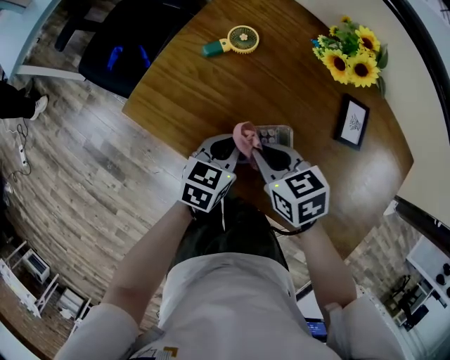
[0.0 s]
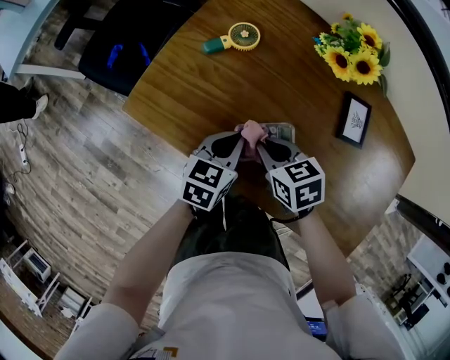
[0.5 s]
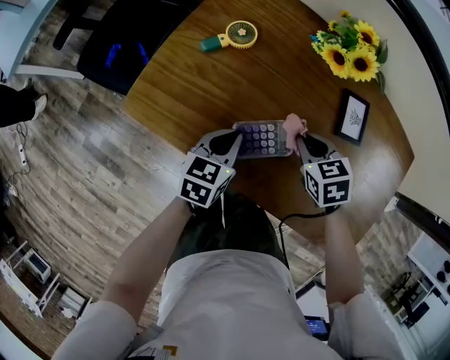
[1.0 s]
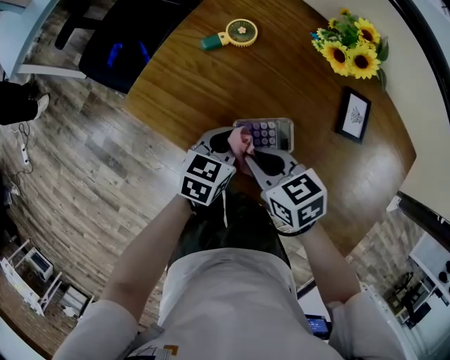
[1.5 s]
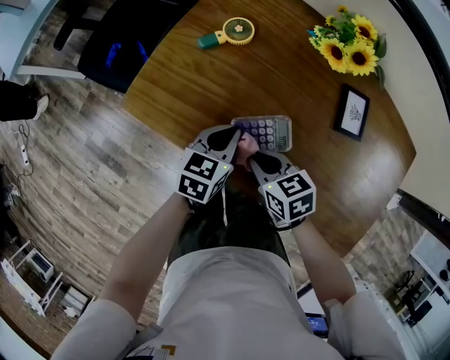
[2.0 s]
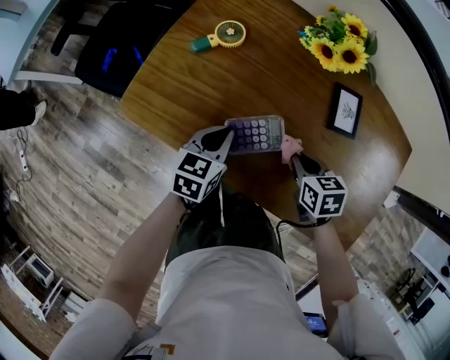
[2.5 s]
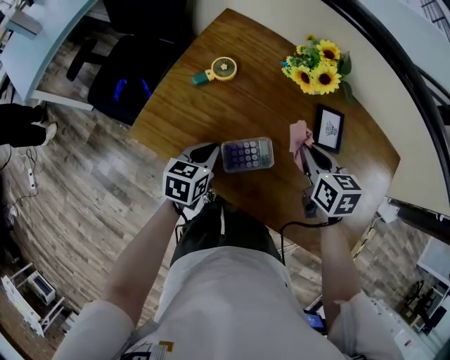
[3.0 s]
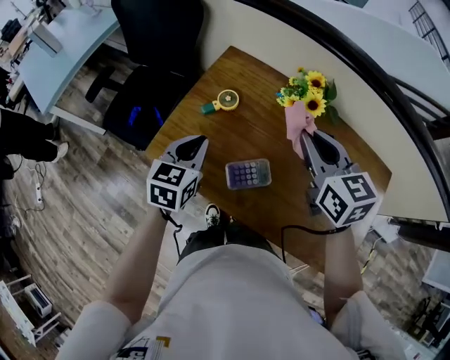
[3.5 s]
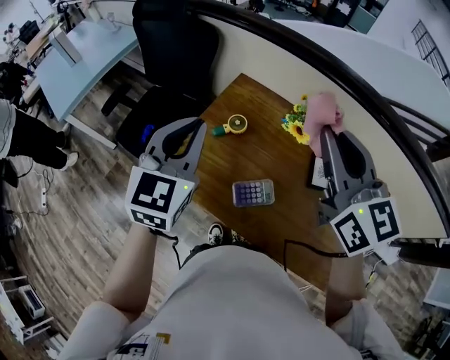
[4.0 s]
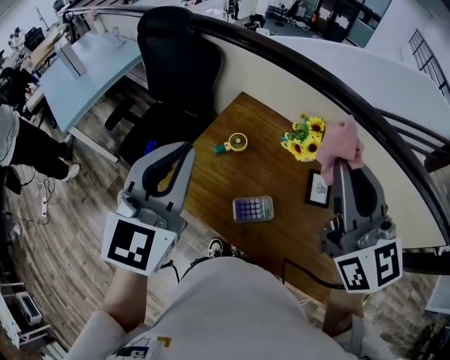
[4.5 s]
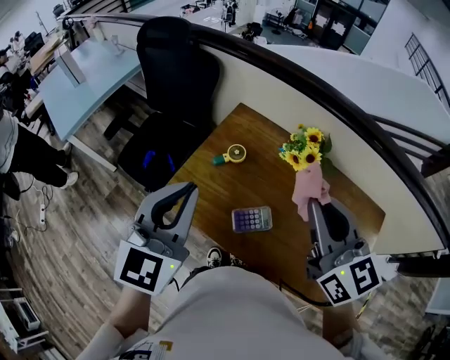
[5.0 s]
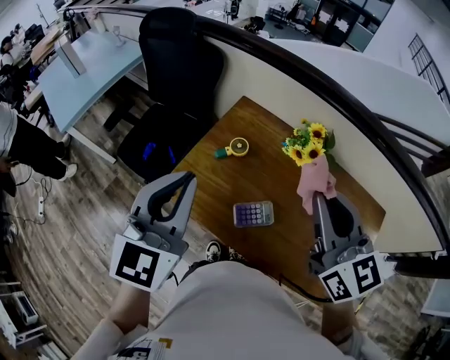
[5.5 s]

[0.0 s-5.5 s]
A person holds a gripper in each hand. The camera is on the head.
0.0 to 2.0 s: The right gripper moves some 10 cm to the right and comes back.
2.0 to 3.5 s: The right gripper is displaced upward and forward by roughly 30 cm, and turns by approximately 40 degrees. Meanwhile the left gripper goes some 20 cm upward and to the left.
3.5 to 5.5 s: The right gripper travels upward and backward by roughly 15 cm; the left gripper heads upward, covering about 25 cm, and turns by some 30 degrees.

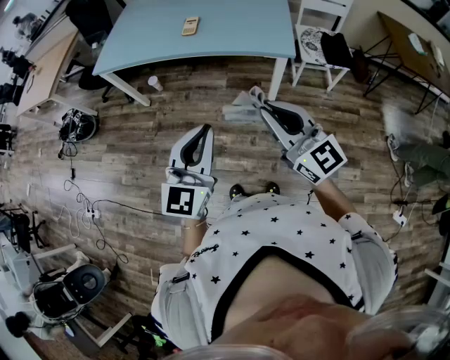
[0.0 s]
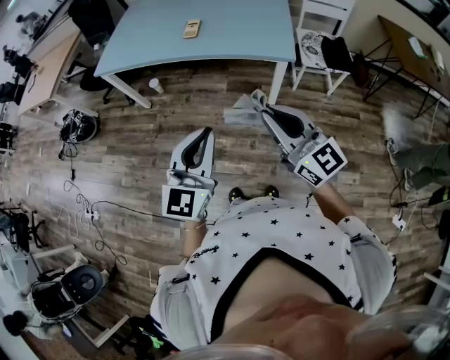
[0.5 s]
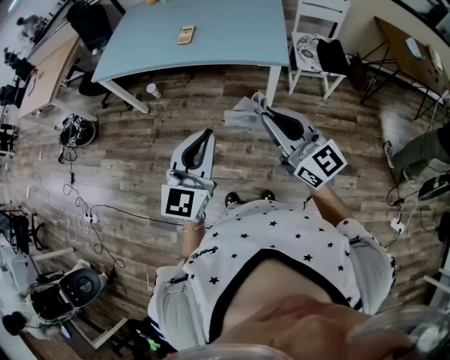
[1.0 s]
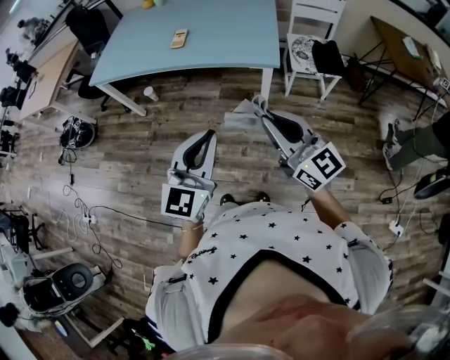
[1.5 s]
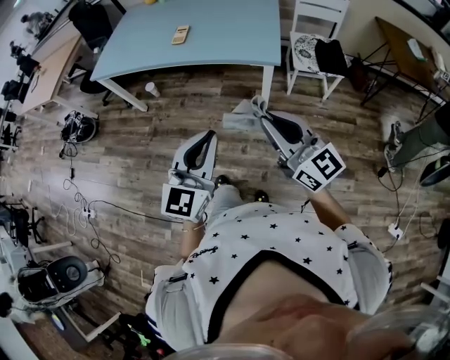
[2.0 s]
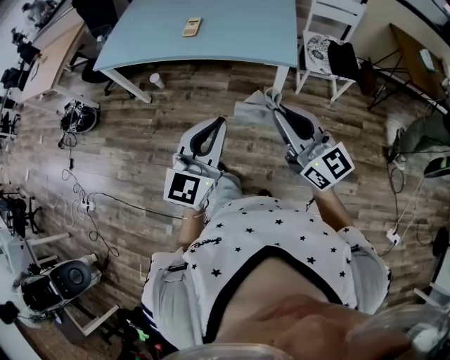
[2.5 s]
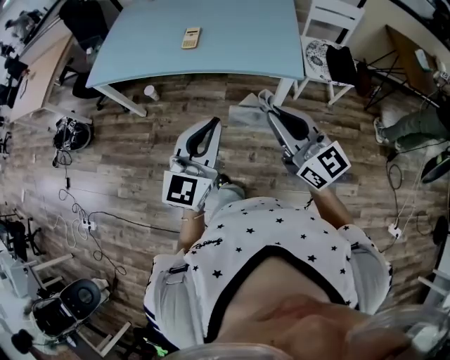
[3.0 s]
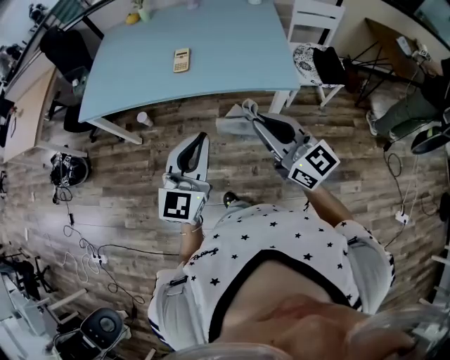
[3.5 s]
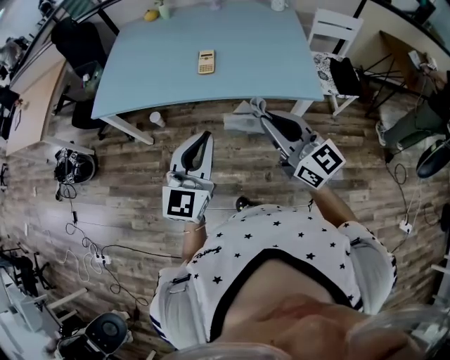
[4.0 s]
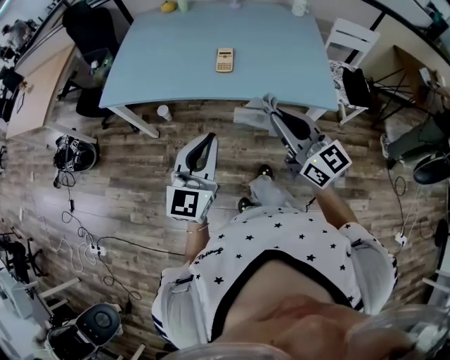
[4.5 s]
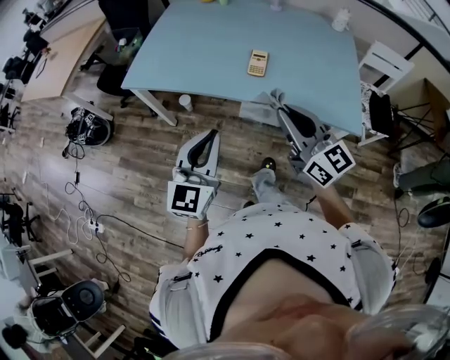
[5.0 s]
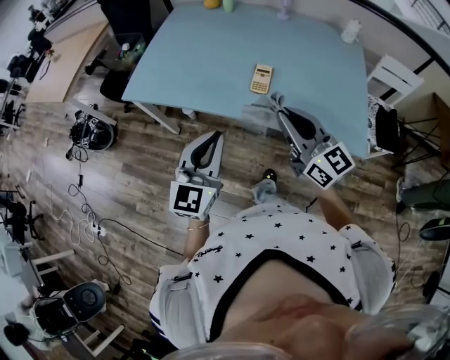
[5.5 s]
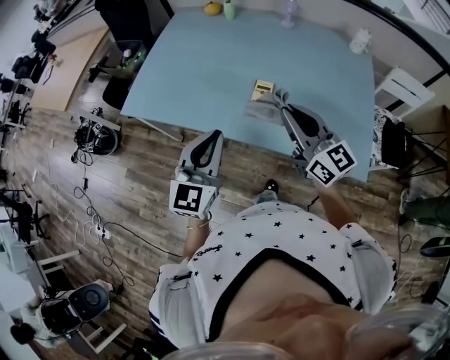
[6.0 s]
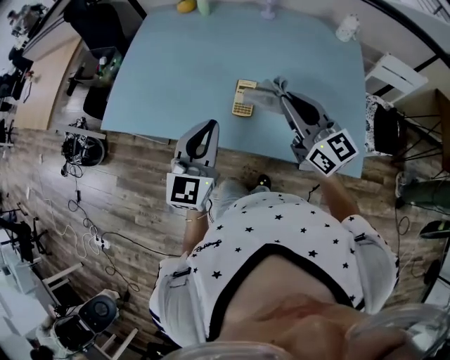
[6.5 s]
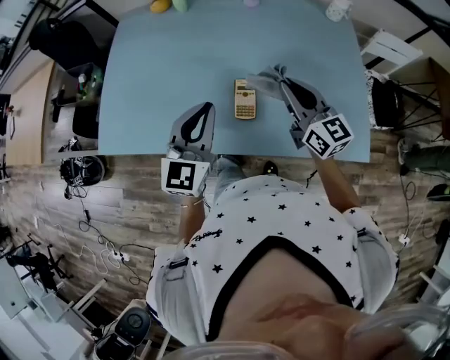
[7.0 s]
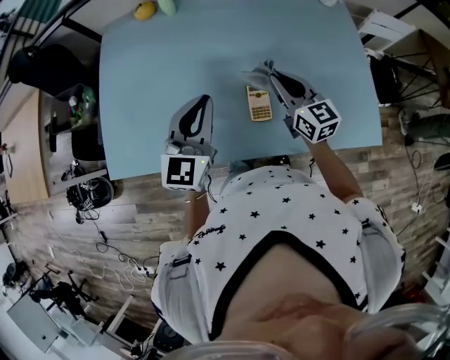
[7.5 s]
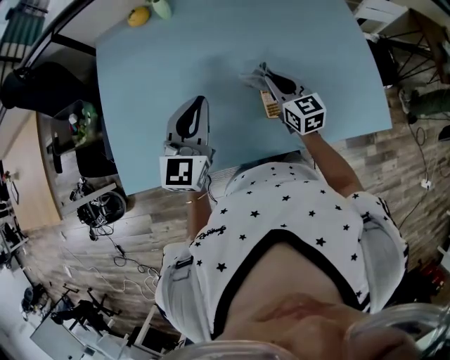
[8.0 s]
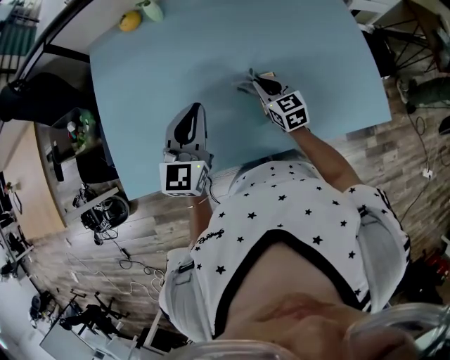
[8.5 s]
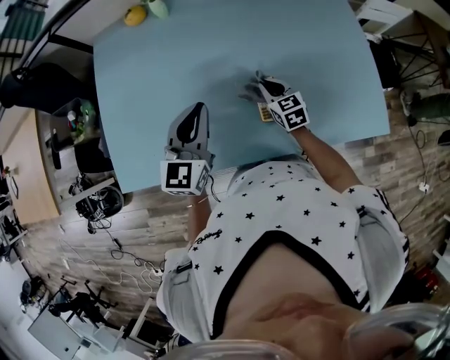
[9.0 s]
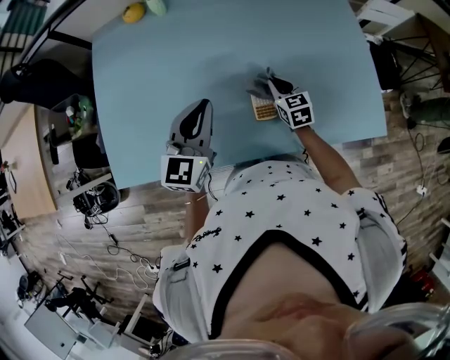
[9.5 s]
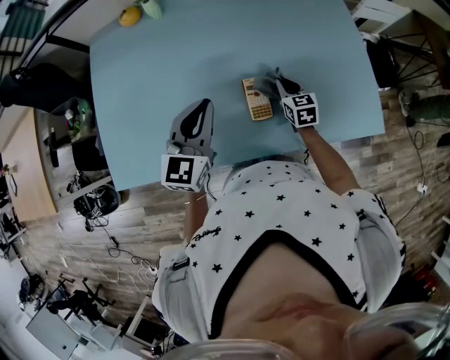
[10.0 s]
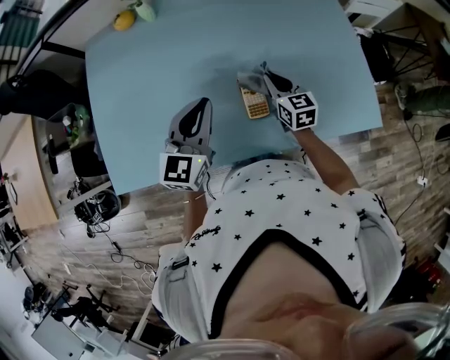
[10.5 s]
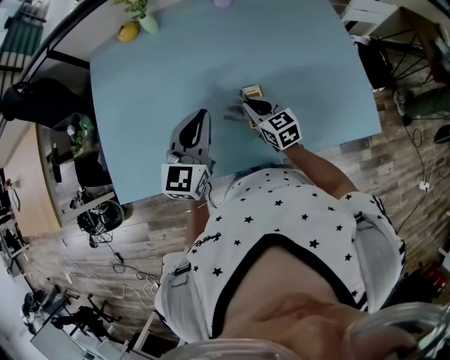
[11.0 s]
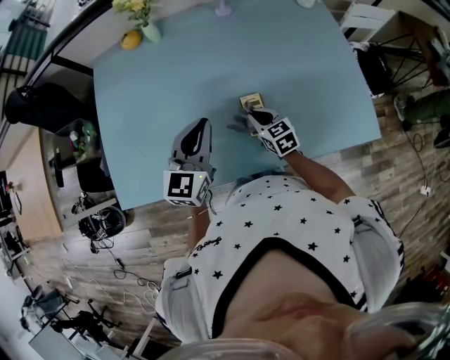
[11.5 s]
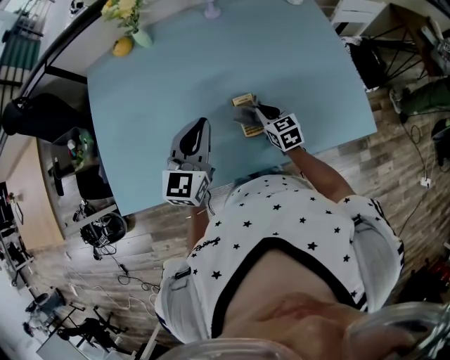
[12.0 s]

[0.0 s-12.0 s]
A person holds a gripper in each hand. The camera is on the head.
0.0 to 2.0 s: Both grippers travel together to the right, approximately 10 cm.
2.0 to 4.0 s: Both grippers travel together forward and to the left, approximately 35 cm.
4.0 to 6.0 s: The two grippers go about 25 cm forward.
6.0 to 8.0 s: The right gripper shifts by about 30 cm, and swivels about 40 degrees; the left gripper moves some 30 cm, and rotates roughly 20 degrees.
8.0 to 10.0 s: The left gripper shifts roughly 5 cm to the right. Meanwhile the right gripper shifts approximately 15 cm to the right and downward.

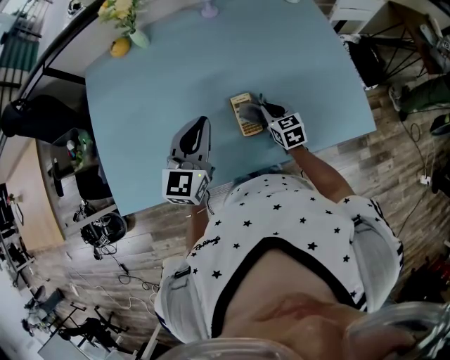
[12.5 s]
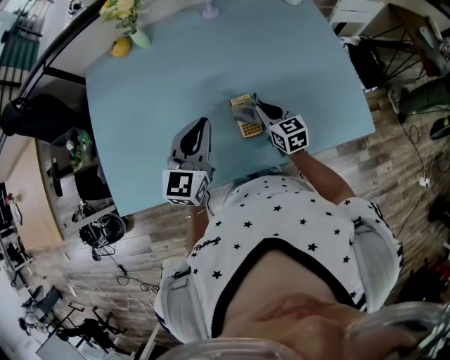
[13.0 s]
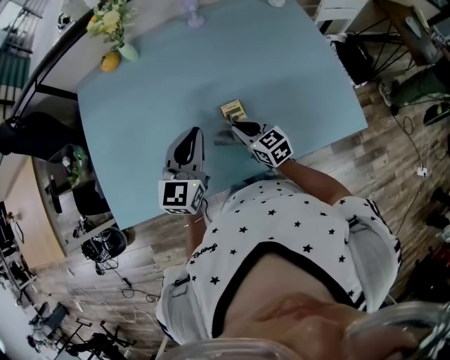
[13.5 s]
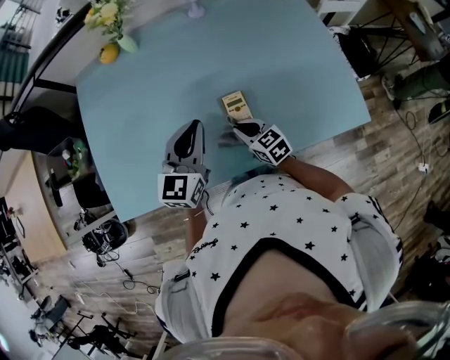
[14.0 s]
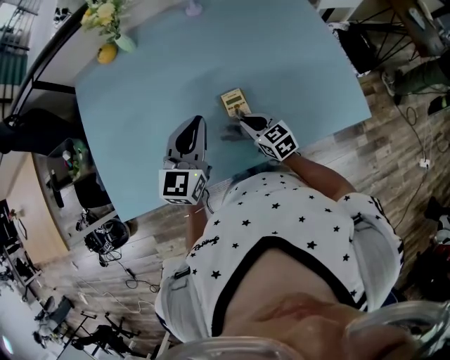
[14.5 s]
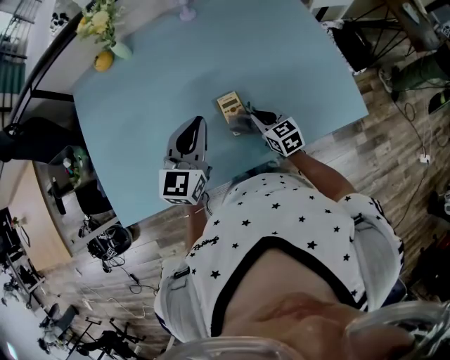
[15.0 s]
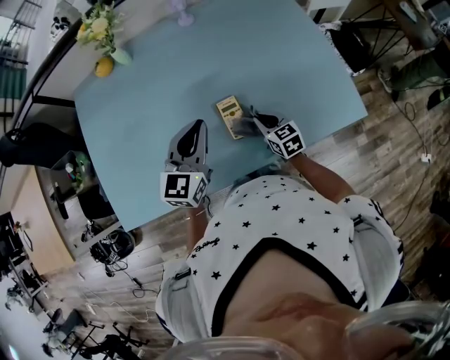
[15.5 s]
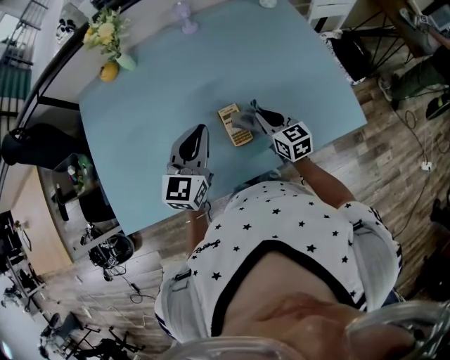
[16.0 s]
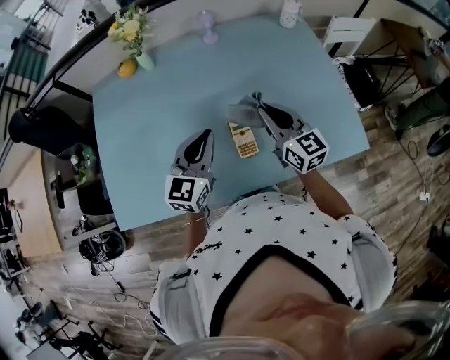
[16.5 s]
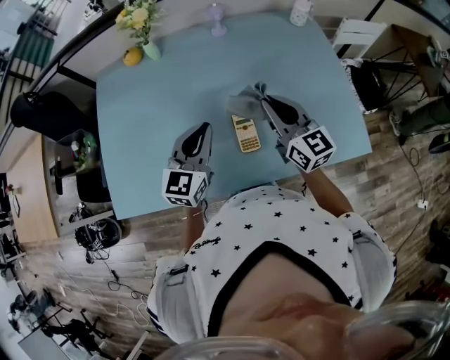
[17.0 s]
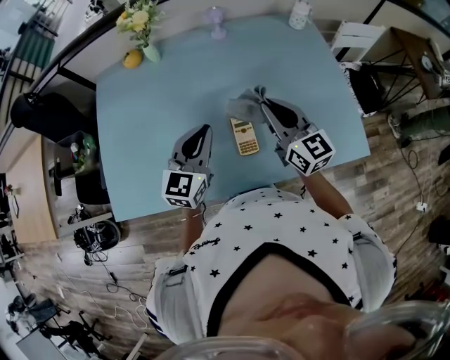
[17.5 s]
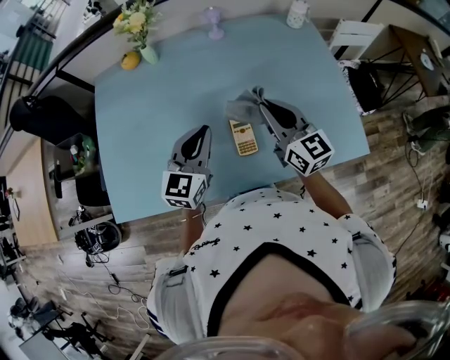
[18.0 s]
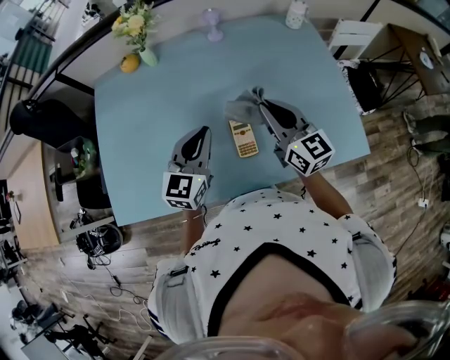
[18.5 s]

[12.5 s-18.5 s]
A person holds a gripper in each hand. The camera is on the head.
12.5 to 14.5 s: The right gripper is displaced to the left and backward by approximately 10 cm.
14.5 to 16.5 s: The right gripper heads upward, covering about 20 cm, and changes its angle by roughly 30 degrees.
16.5 to 18.5 s: The grippers make only small movements.

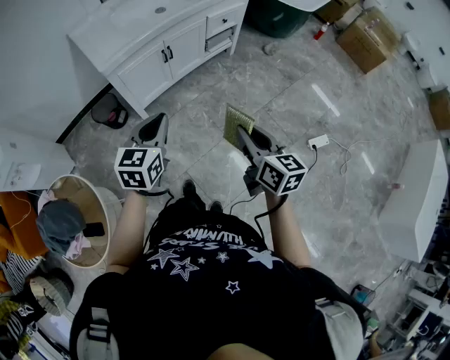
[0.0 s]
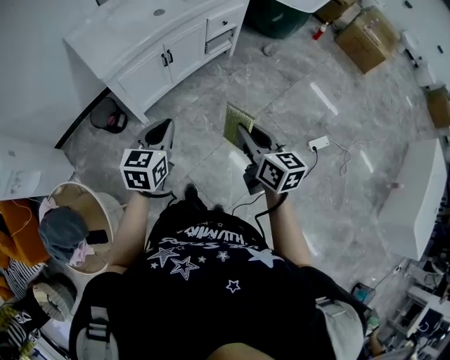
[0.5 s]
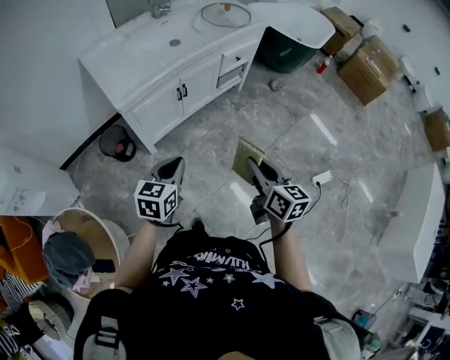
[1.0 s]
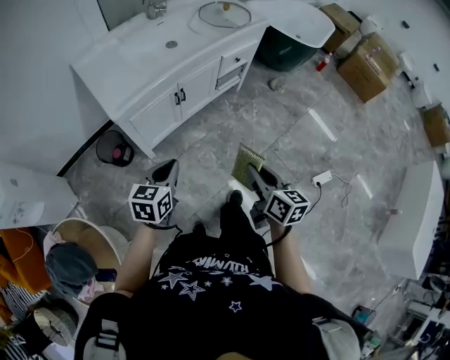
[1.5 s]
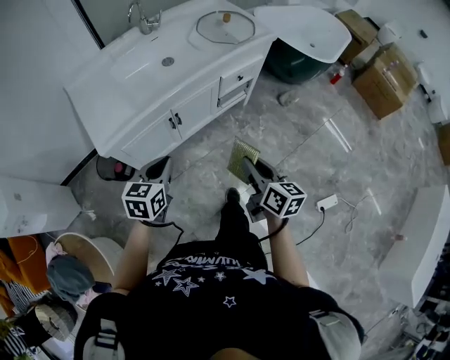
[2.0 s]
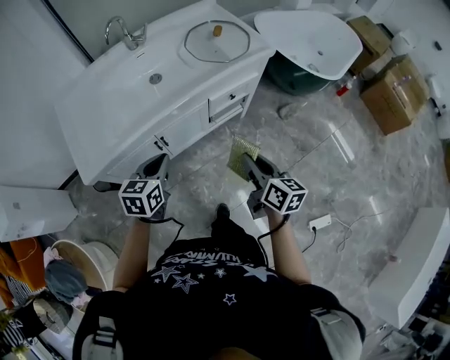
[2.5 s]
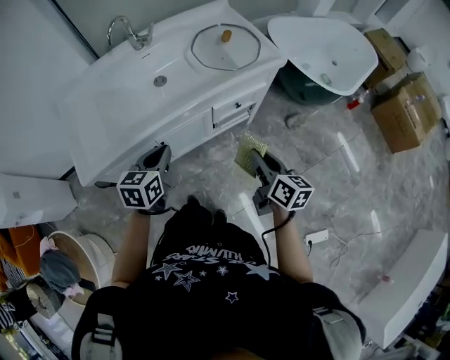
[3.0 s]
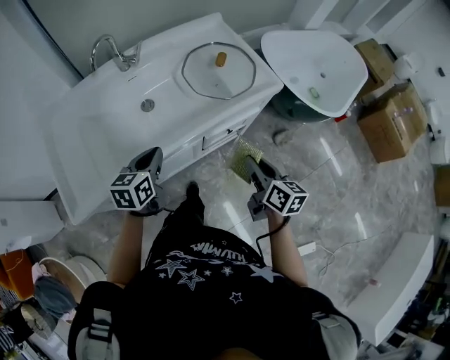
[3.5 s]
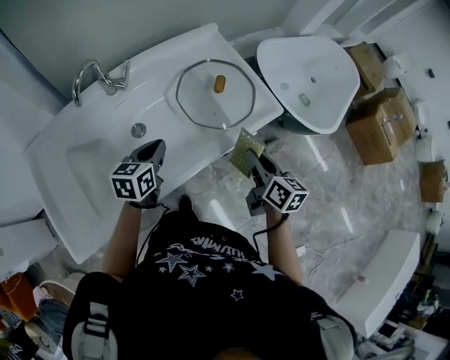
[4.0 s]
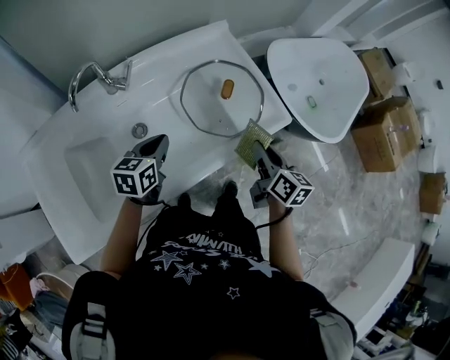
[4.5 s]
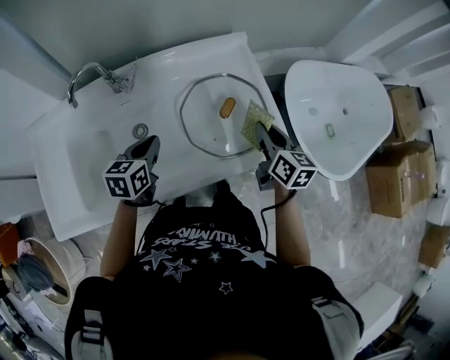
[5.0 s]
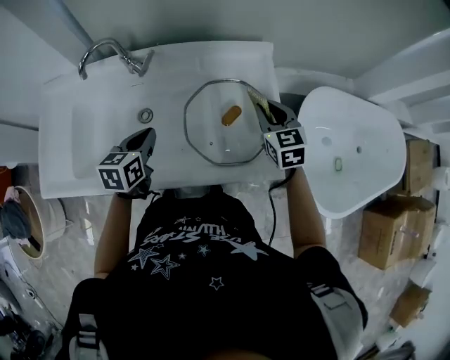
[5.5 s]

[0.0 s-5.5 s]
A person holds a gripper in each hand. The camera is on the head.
0.0 to 2.0 s: Both grippers travel together forward, approximately 30 cm.
2.0 to 3.5 s: Both grippers move forward, about 35 cm.
3.5 to 5.5 s: The right gripper changes place by some 50 cm, and rolls counterclockwise, seen from behind, by roughly 50 degrees, while the left gripper changes place by some 25 cm, and swivels about 30 degrees.
